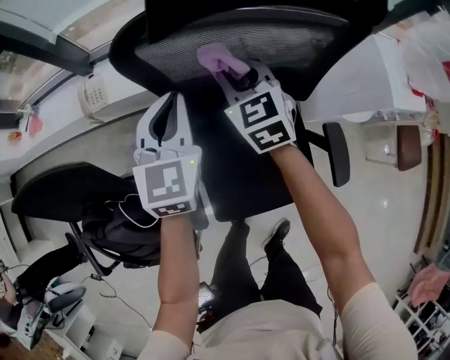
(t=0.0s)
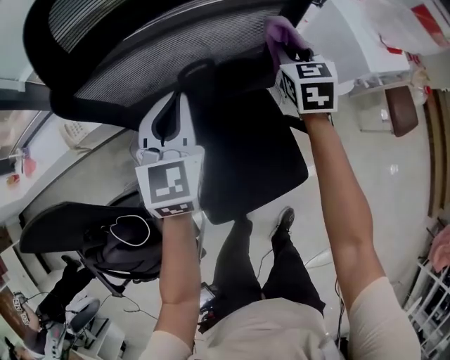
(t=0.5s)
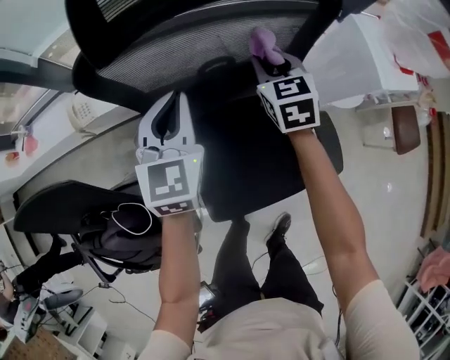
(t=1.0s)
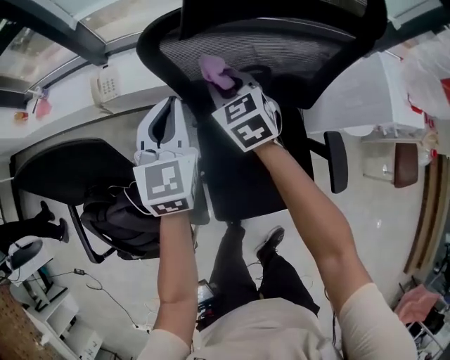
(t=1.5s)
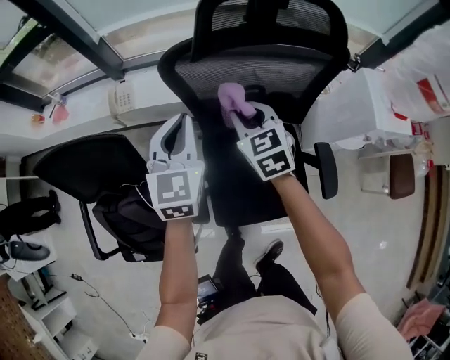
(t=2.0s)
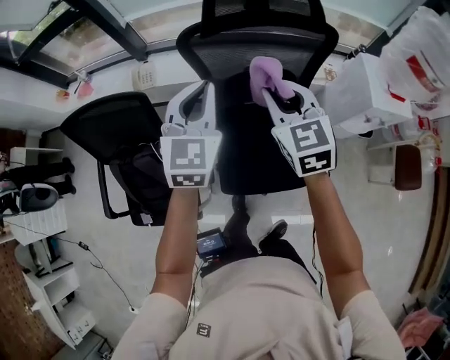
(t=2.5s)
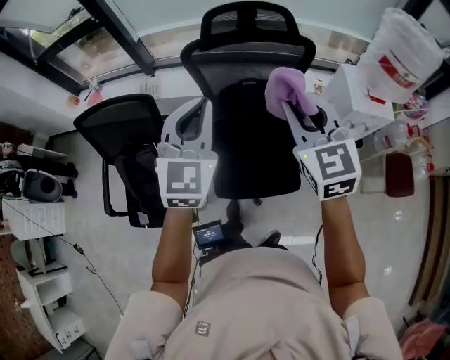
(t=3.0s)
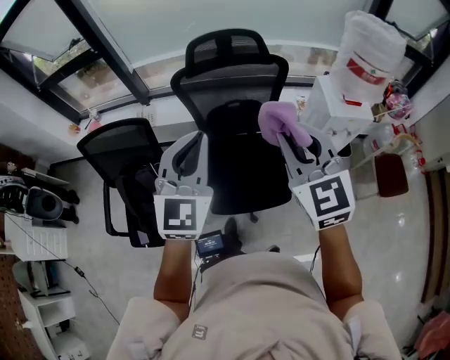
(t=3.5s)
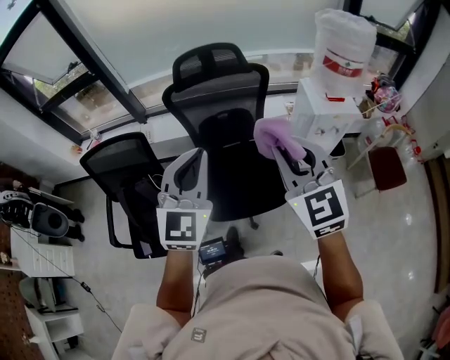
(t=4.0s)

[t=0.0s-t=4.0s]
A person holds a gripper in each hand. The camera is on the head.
t=0.0s to t=2.0s: The left gripper heads upward, covering some 10 cm.
t=2.0s to t=4.0s: The two grippers travel together, backward and to the right, approximately 40 cm. The grippers both shift upward by approximately 30 cm. The left gripper swivels some 20 degrees. Meanwhile the right gripper rotates about 30 degrees.

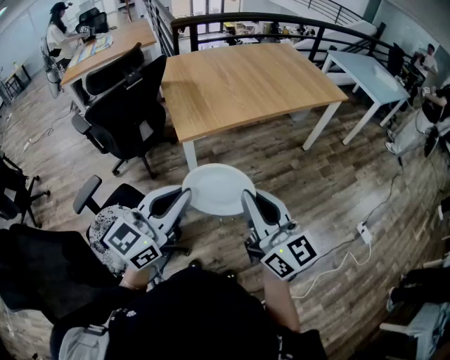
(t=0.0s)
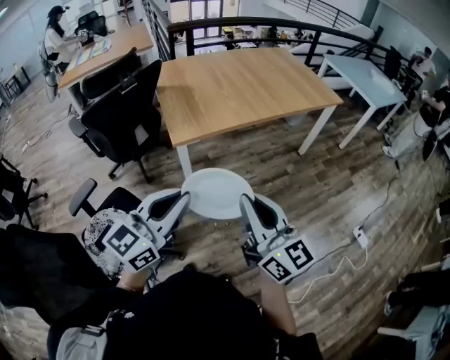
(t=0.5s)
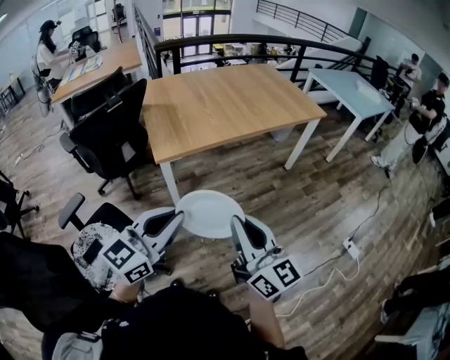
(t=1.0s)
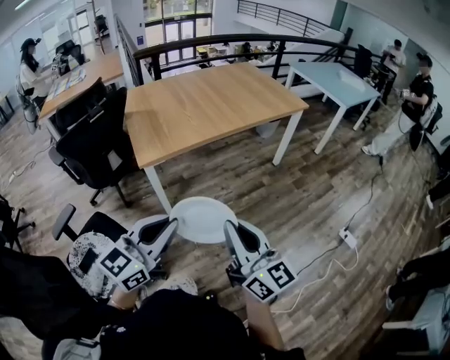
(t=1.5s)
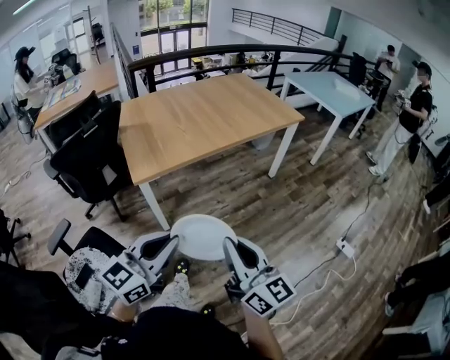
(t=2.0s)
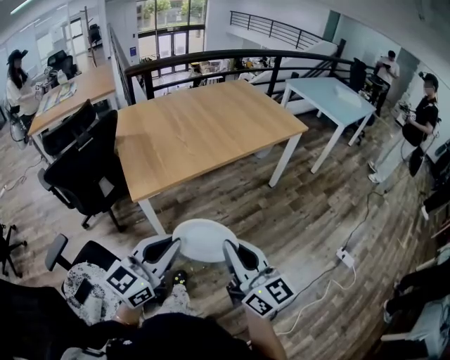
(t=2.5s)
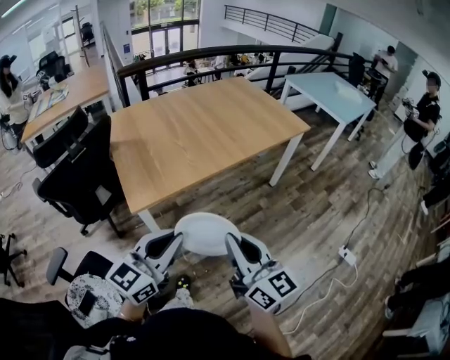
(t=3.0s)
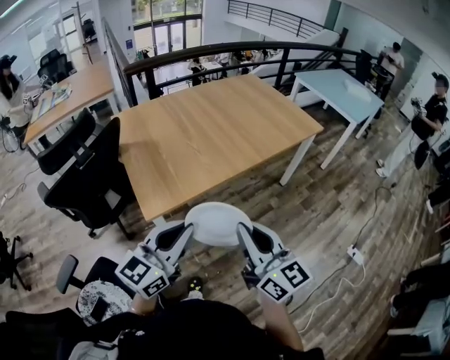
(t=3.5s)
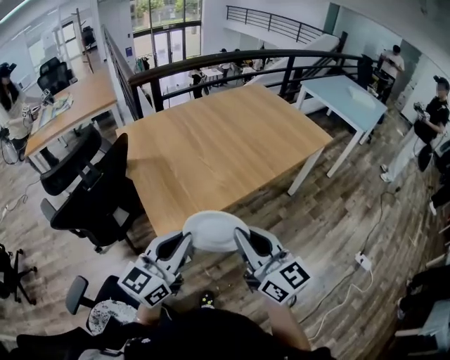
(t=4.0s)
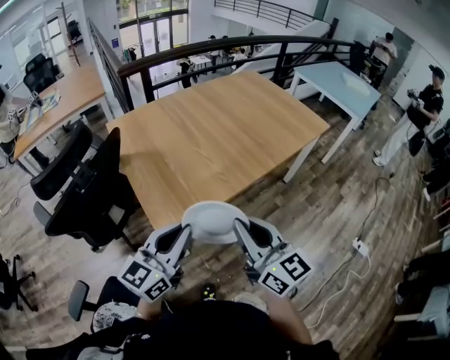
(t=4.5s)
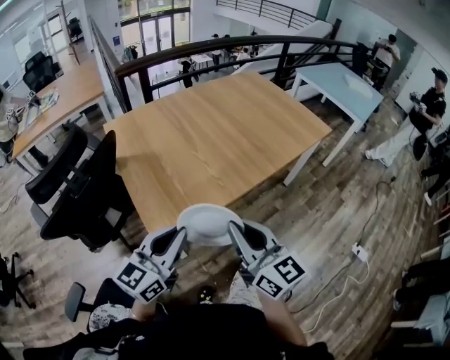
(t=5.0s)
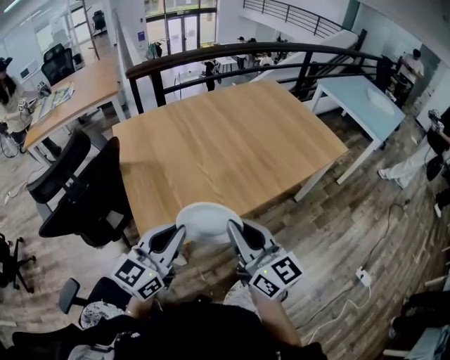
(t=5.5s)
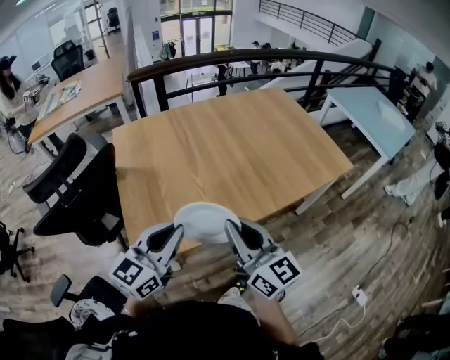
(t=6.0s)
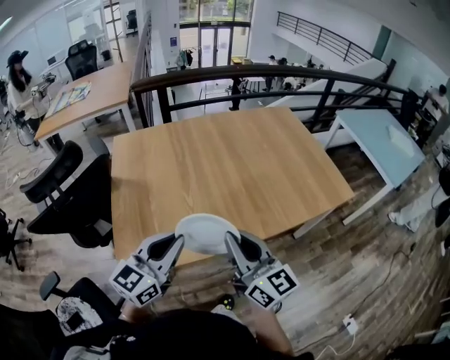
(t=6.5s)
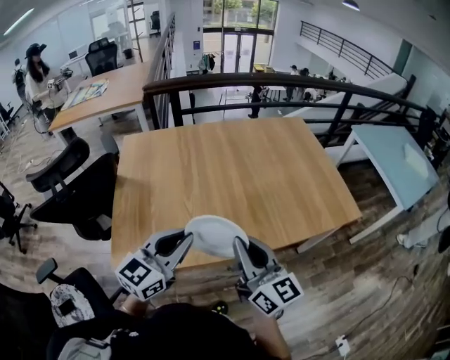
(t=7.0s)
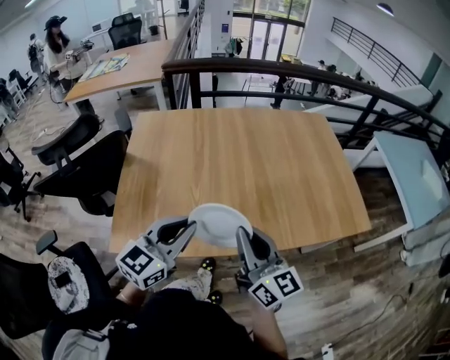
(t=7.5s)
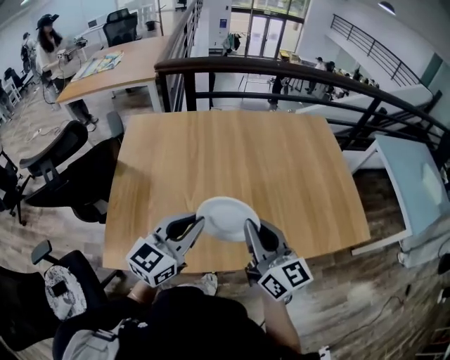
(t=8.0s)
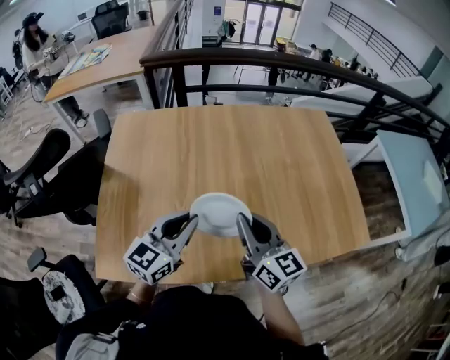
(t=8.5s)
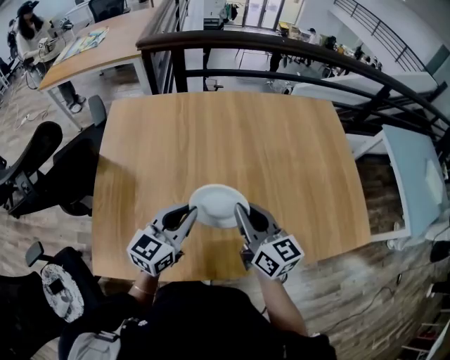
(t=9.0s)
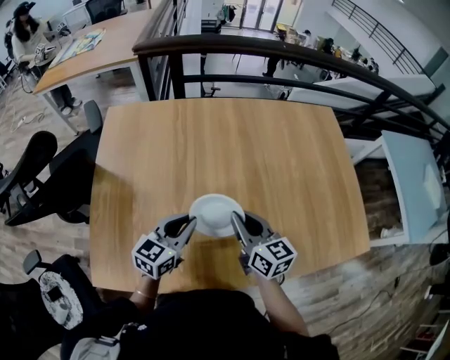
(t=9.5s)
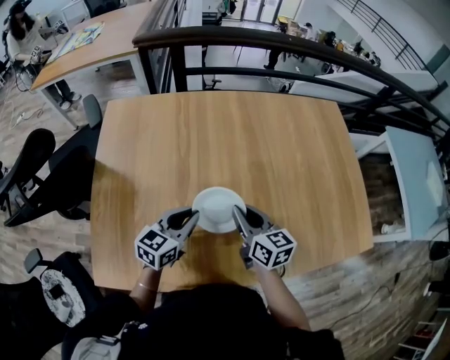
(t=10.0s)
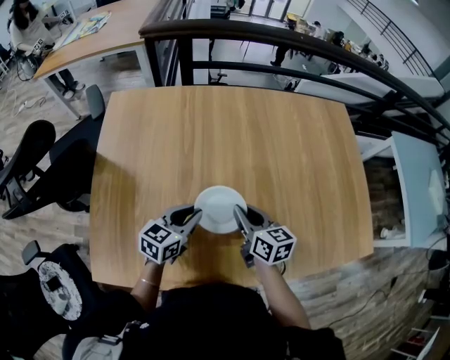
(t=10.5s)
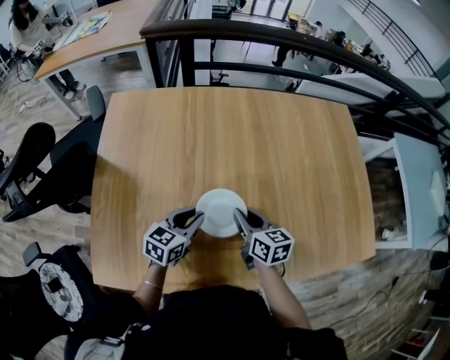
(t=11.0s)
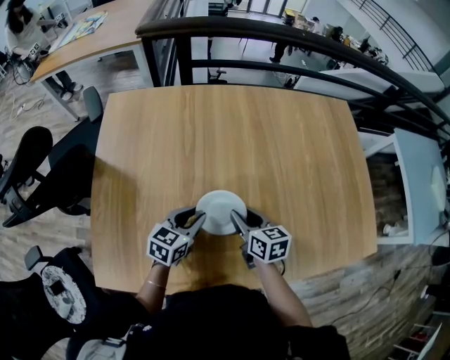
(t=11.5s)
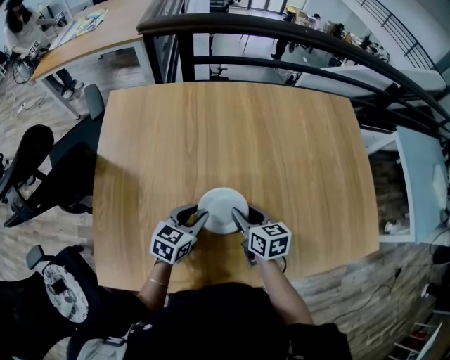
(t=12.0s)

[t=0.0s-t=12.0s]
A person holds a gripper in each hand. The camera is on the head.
t=0.0s to t=2.0s: Both grippers travel together to the right, about 15 cm.
t=2.0s to t=4.0s: Both grippers move forward and to the left, approximately 35 cm.
t=4.0s to t=6.0s: The grippers both shift forward by some 20 cm.
t=6.0s to t=8.0s: The two grippers go some 25 cm forward and to the right.
t=8.0s to t=10.0s: The two grippers go about 25 cm downward and forward. The right gripper swivels about 30 degrees.
t=10.0s to t=12.0s: The two grippers go roughly 10 cm downward. The right gripper opens its fingers.

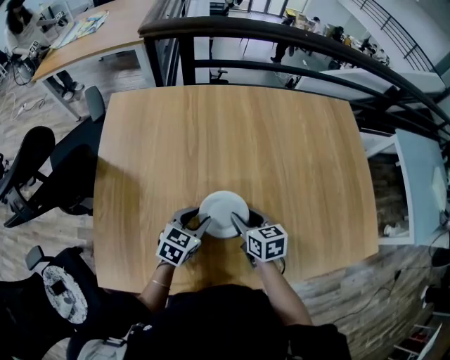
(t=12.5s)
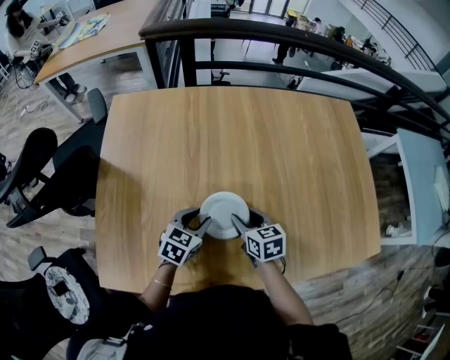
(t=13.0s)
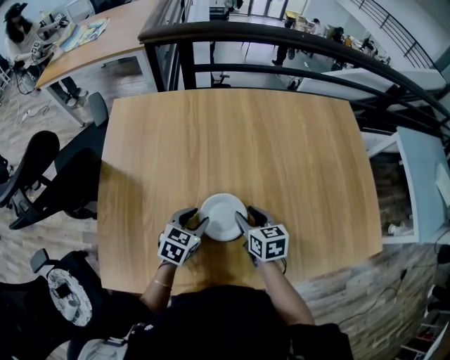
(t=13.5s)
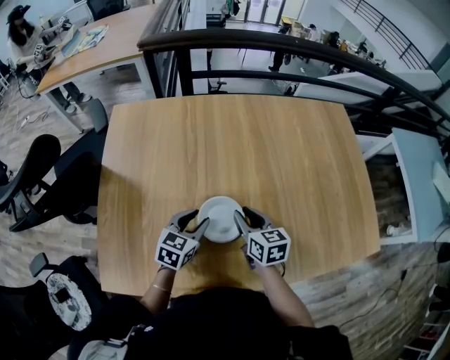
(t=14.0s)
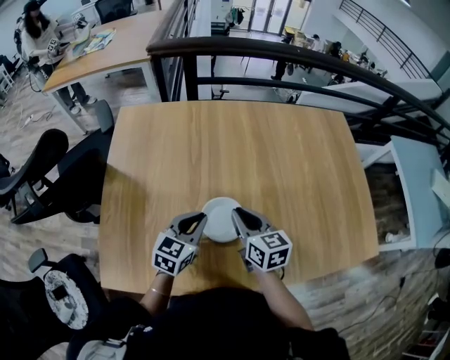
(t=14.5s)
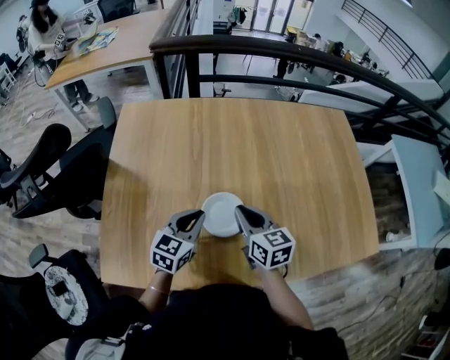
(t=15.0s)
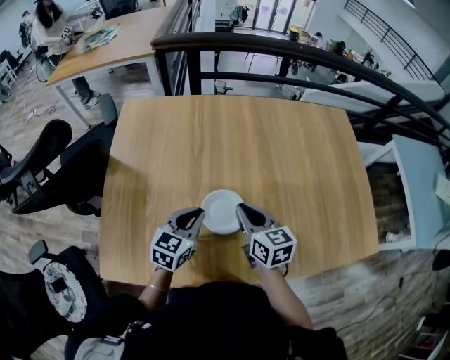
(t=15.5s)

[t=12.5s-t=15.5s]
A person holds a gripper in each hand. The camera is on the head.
t=12.5s to t=14.0s: The grippers stay close to where they were, moving slightly.
t=14.0s to t=15.5s: The grippers both shift upward by roughly 5 cm. The left gripper closes up, while the right gripper closes up.

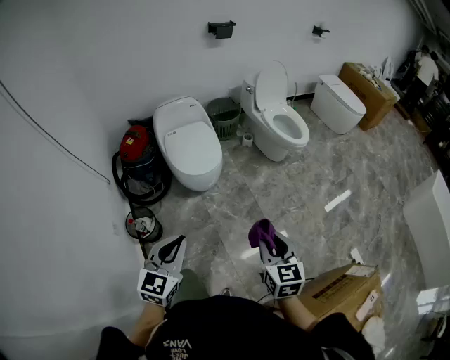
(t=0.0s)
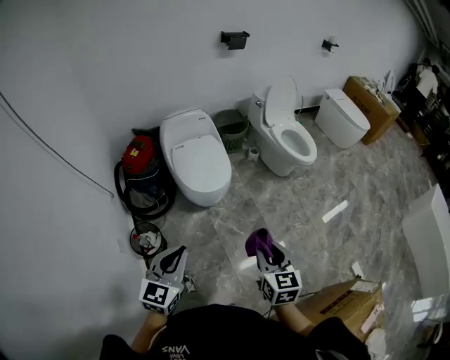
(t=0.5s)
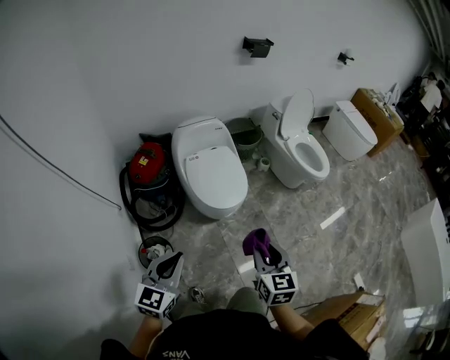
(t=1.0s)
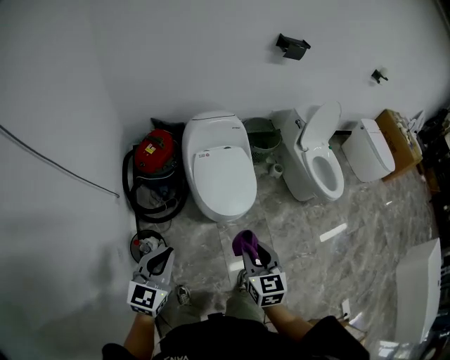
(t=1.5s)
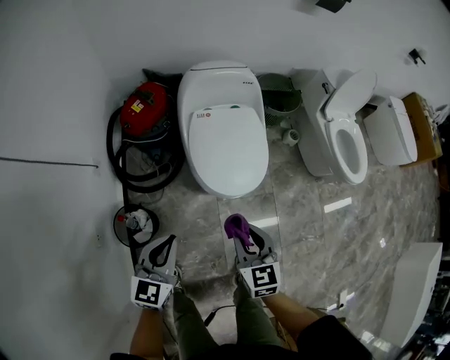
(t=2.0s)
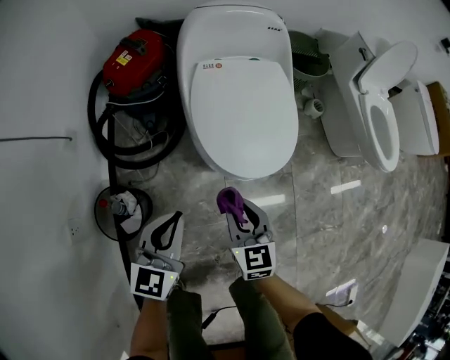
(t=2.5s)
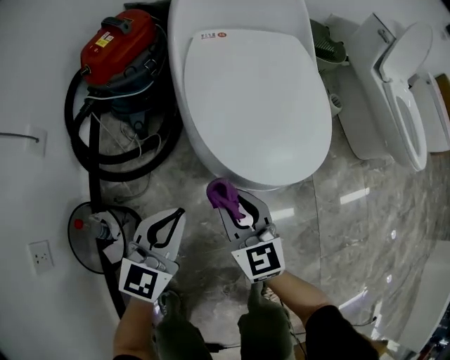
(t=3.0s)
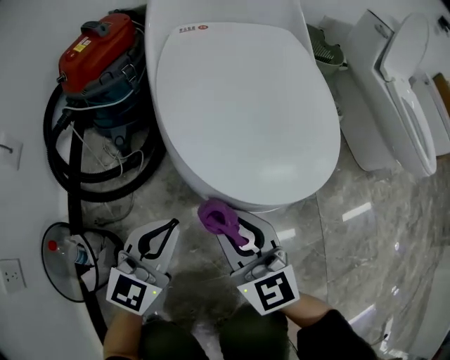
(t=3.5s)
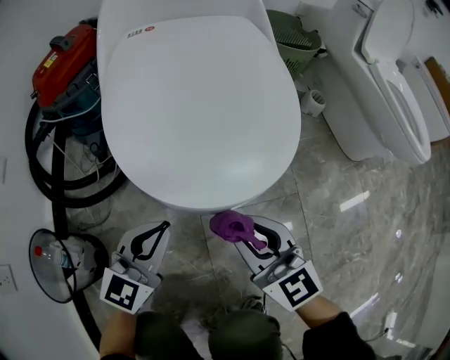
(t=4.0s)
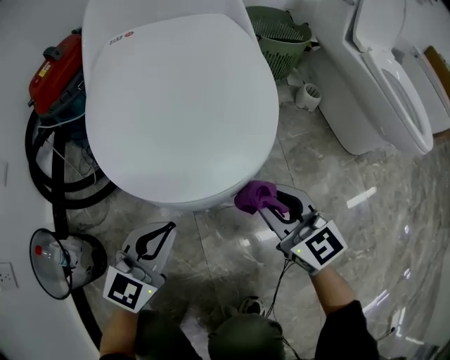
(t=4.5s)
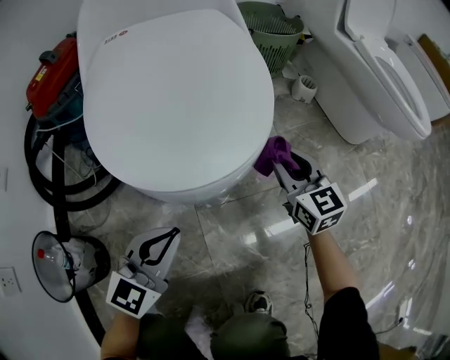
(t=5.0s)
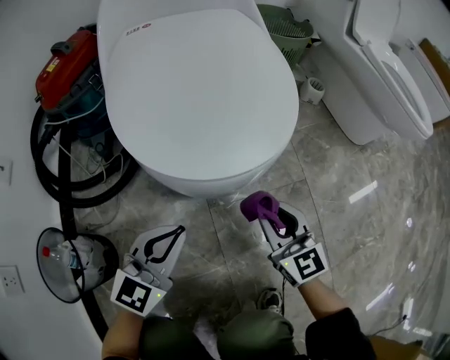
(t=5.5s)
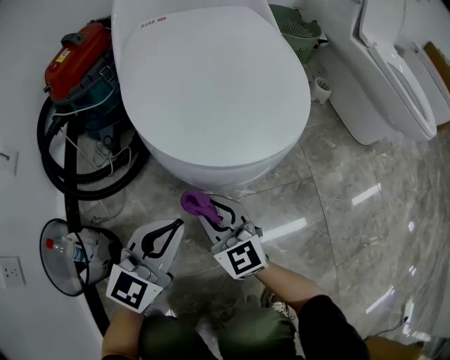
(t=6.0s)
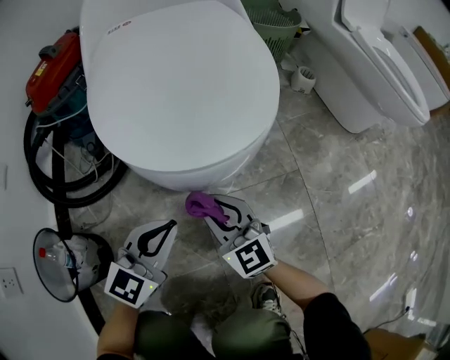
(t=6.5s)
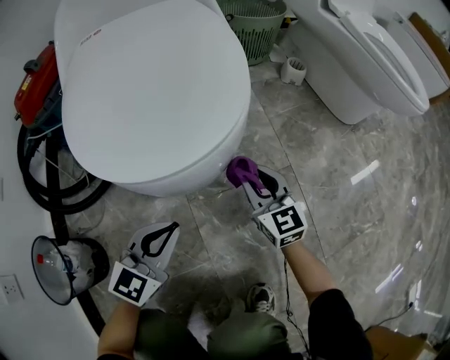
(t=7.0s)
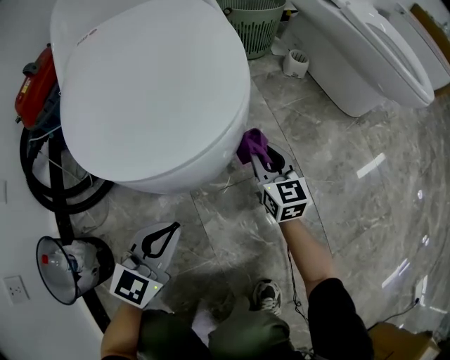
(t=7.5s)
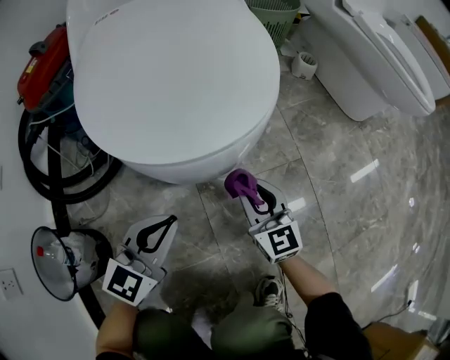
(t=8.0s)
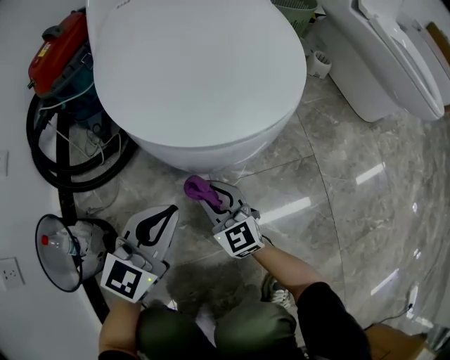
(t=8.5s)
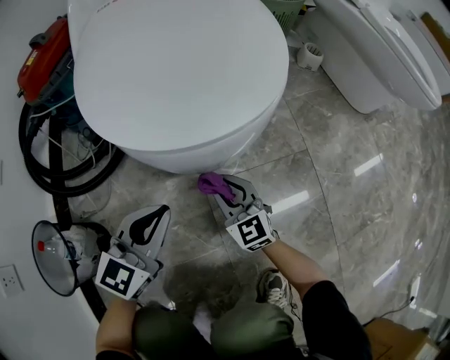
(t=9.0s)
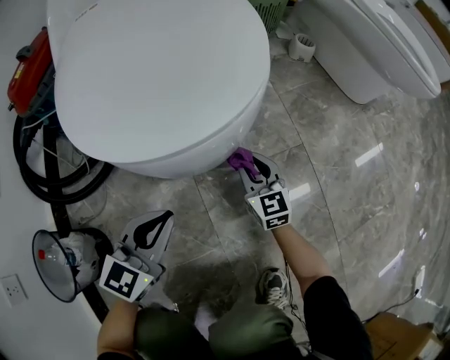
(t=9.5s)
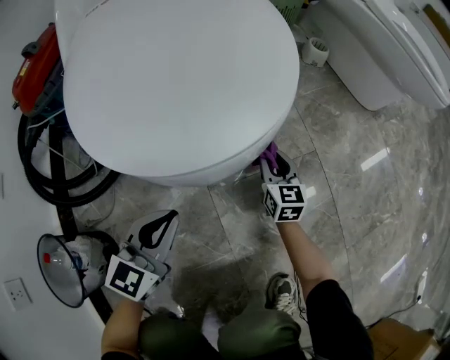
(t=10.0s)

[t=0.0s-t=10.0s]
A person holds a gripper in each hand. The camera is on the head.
t=0.0s to t=2.0s: The right gripper is displaced forward, to the left and downward by approximately 50 cm, and rotates approximately 20 degrees; the left gripper heads forward, downward and to the left, covering roughly 40 cm, and changes its angle by some 20 degrees.
t=2.0s to t=4.0s: Both grippers travel together downward, about 40 cm. The left gripper rotates some 20 degrees; the right gripper swivels approximately 20 degrees.
t=4.0s to t=6.0s: The right gripper travels to the left and downward by about 15 cm.
t=6.0s to t=8.0s: The right gripper heads to the right, covering some 15 cm.
t=8.0s to t=10.0s: The right gripper moves downward and forward, roughly 15 cm, travels to the left and back again, approximately 15 cm each way, and swivels roughly 20 degrees.
